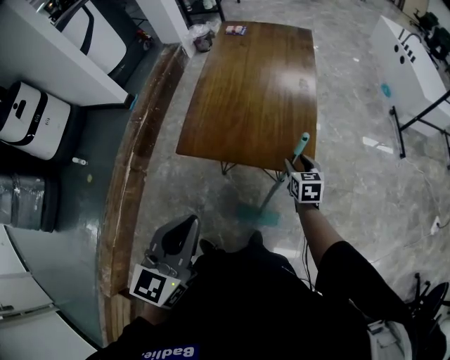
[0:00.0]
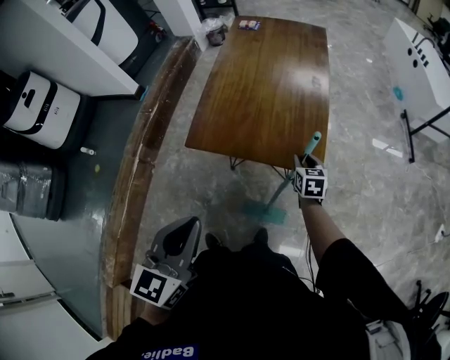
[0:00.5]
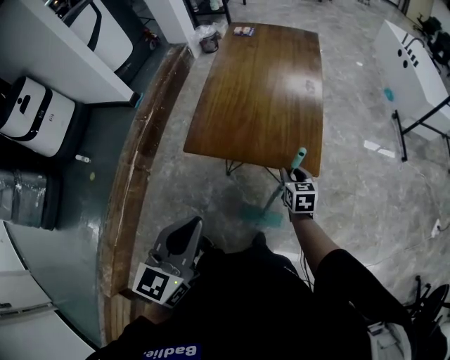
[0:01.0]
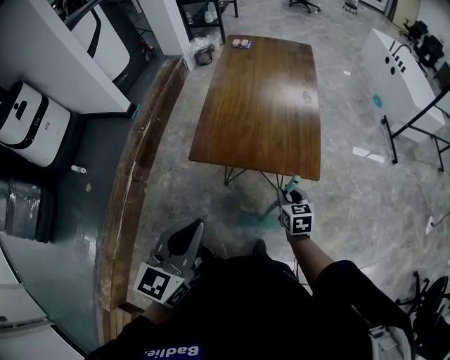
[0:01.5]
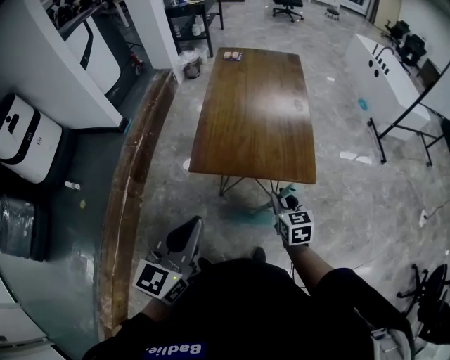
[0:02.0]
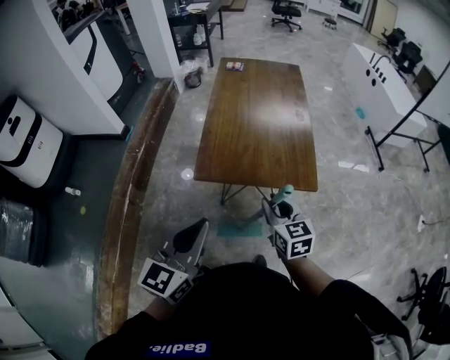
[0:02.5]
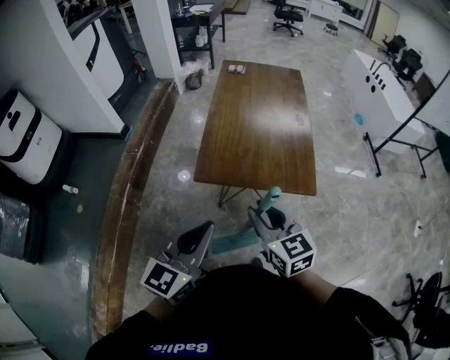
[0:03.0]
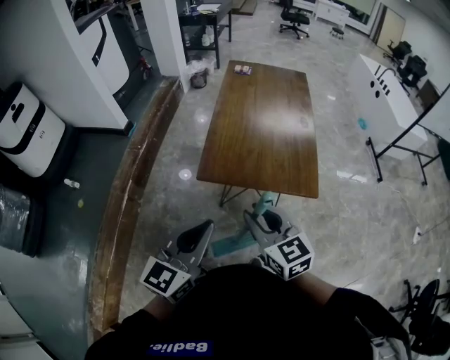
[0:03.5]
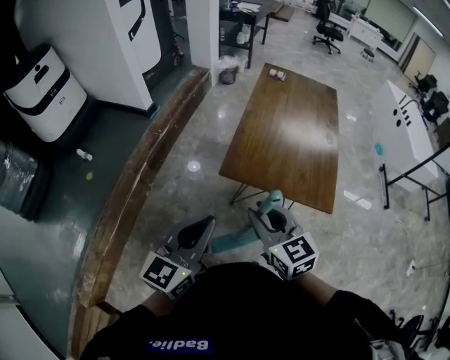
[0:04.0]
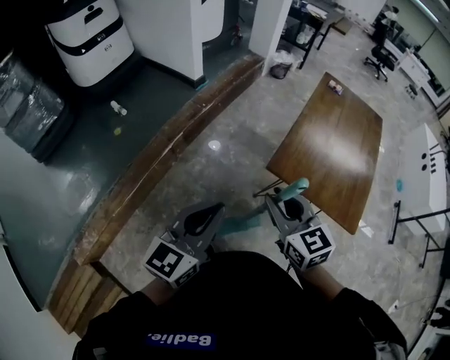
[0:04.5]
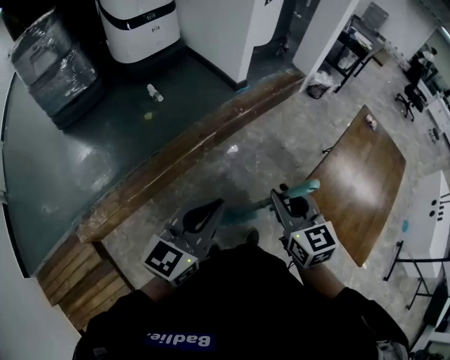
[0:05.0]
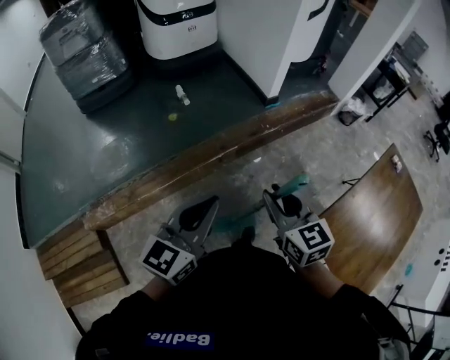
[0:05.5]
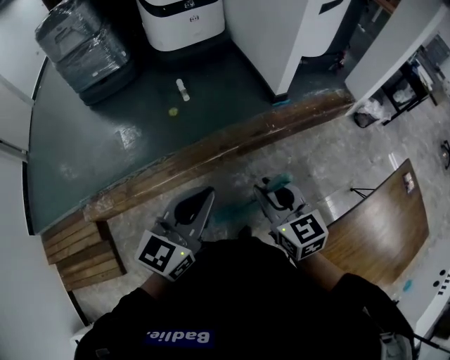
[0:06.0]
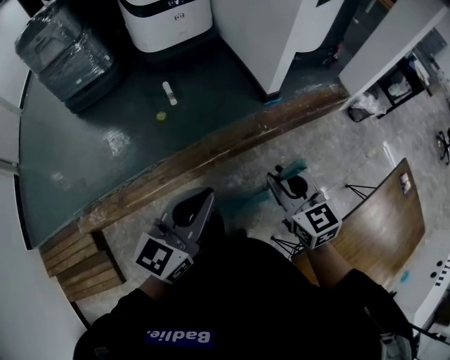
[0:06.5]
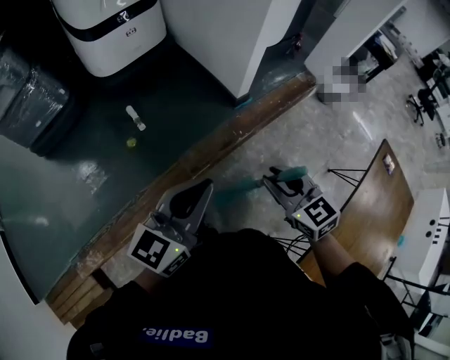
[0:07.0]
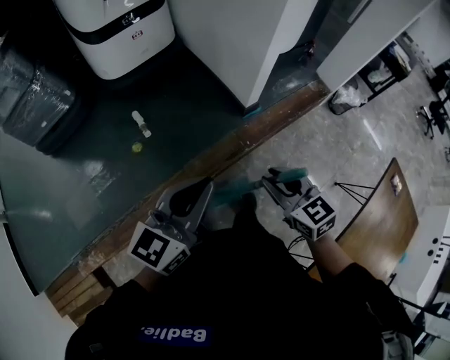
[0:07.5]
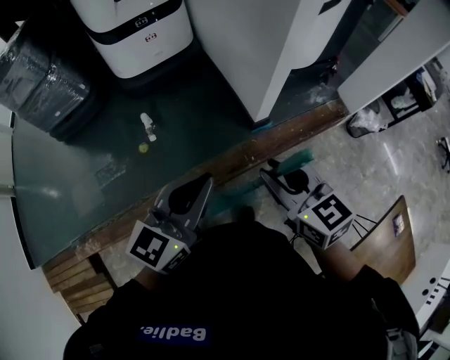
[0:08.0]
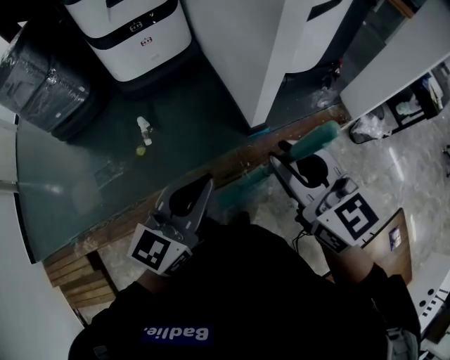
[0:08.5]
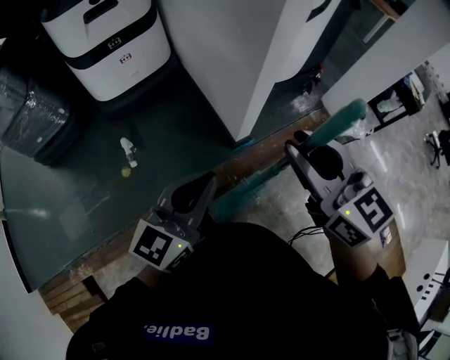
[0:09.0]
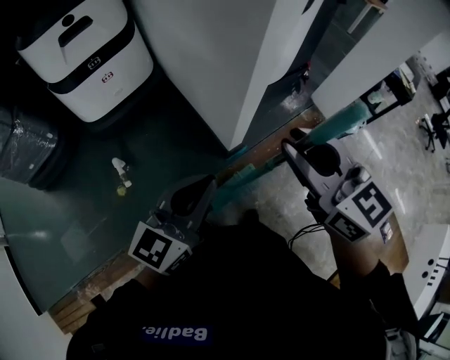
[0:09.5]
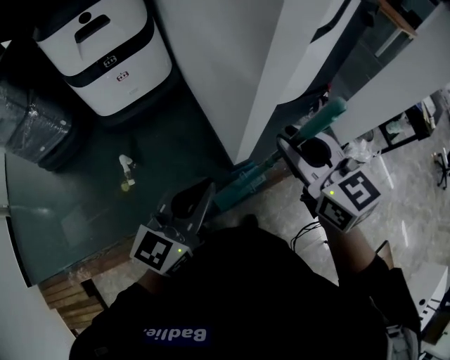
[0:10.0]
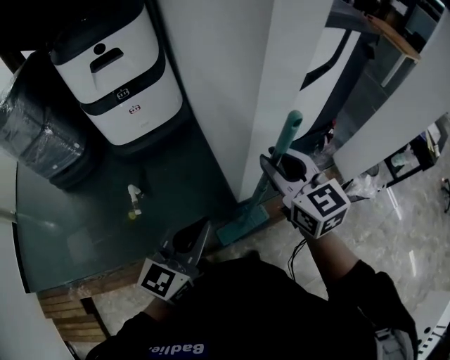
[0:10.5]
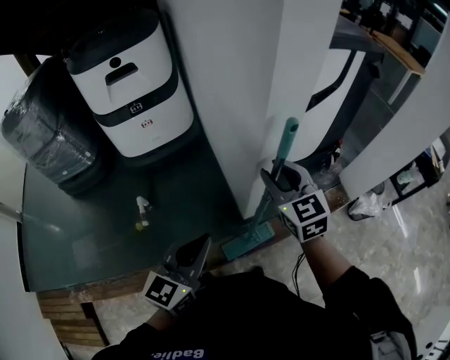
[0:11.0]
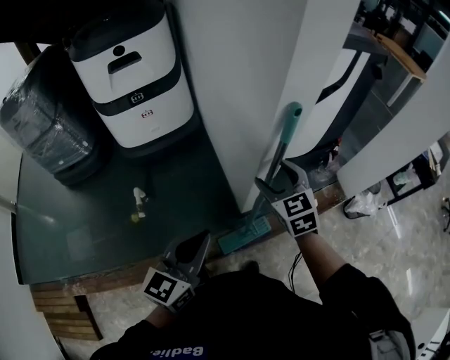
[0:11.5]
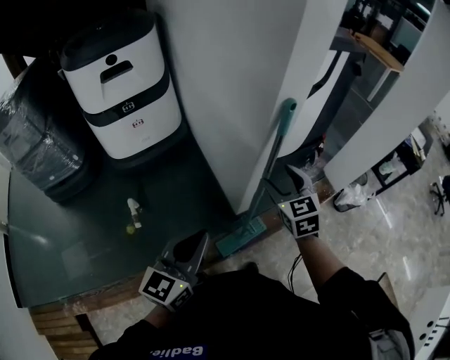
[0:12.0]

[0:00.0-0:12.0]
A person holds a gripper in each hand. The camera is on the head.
0:00.0 to 0:02.0: The left gripper shifts about 10 cm to the left; the right gripper moves to the left, backward and upward, approximately 20 cm.
0:02.0 to 0:04.0: The right gripper shifts about 25 cm to the left and upward, and turns by some 30 degrees, while the left gripper goes roughly 5 cm to the left.
0:04.0 to 0:06.0: The right gripper shifts by approximately 50 cm, and rotates approximately 50 degrees. The left gripper changes place by about 40 cm, and turns by approximately 50 degrees.
0:06.0 to 0:08.0: Both grippers travel together forward, about 35 cm.
0:08.0 to 0:10.0: Both grippers move forward and to the right, roughly 30 cm.
0:10.0 to 0:12.0: The right gripper moves downward and forward, some 10 cm, swivels approximately 20 degrees, and opens its fingers, while the left gripper goes roughly 5 cm to the left.

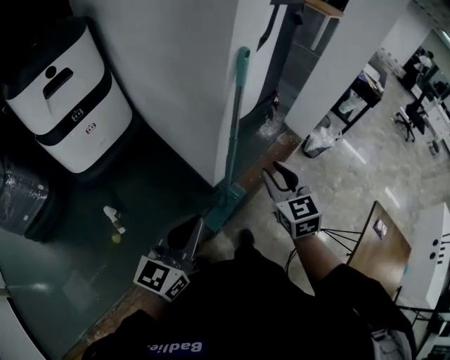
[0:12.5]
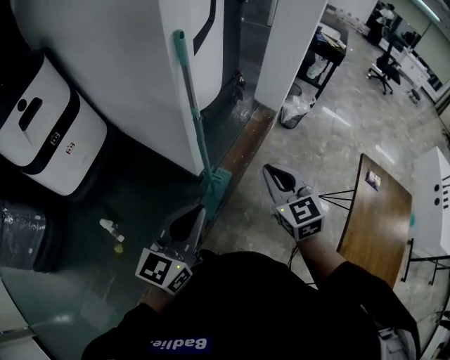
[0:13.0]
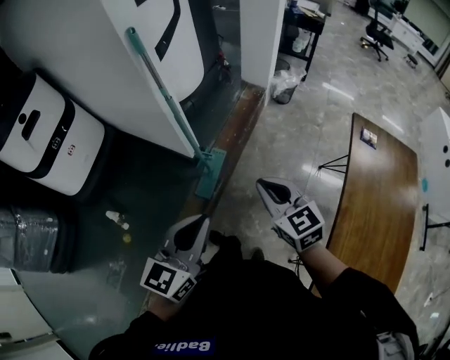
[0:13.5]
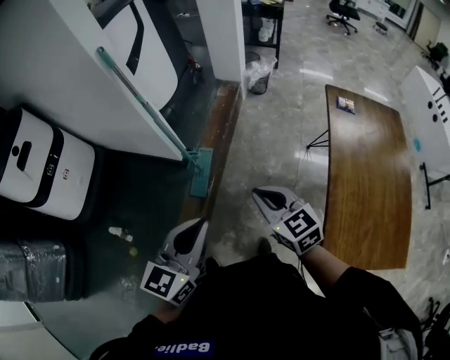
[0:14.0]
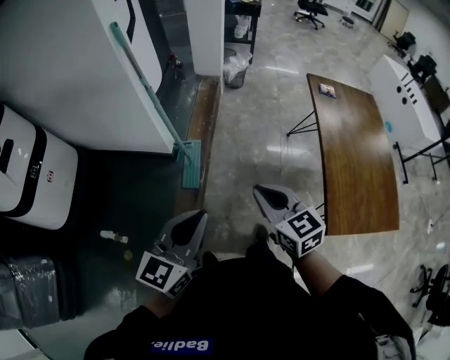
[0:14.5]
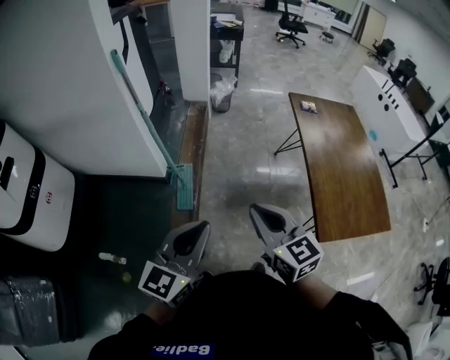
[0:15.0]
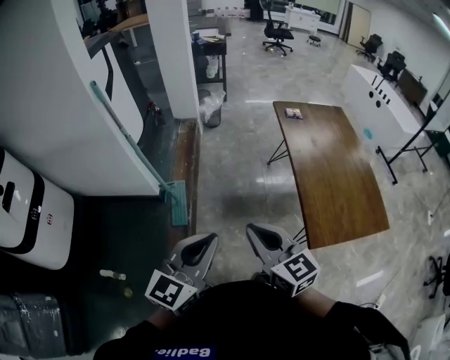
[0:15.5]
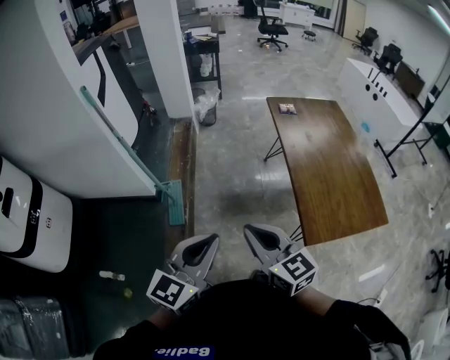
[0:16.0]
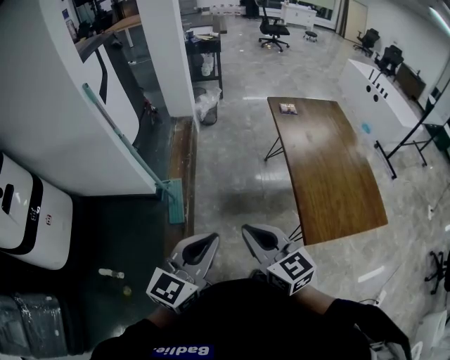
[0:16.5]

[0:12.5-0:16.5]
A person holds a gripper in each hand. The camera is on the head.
0:12.5 to 0:14.5: The left gripper shifts by roughly 25 cm, and rotates about 40 degrees. The right gripper moves roughly 40 cm, changes its angle by about 30 degrees, and closes its fingers.
0:14.5 to 0:16.5: The left gripper shifts about 15 cm to the right. The right gripper heads to the right, backward and upward, covering about 15 cm.

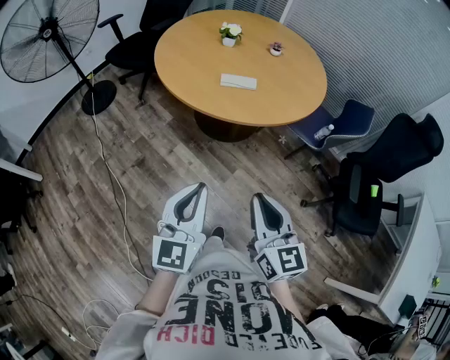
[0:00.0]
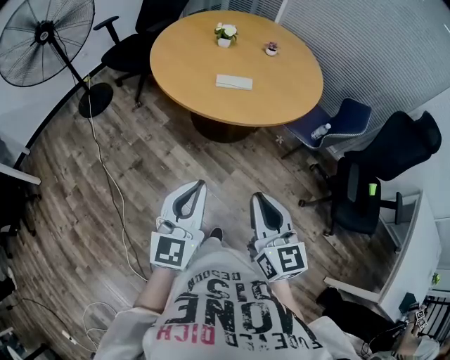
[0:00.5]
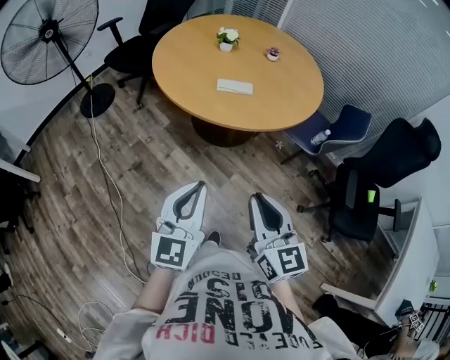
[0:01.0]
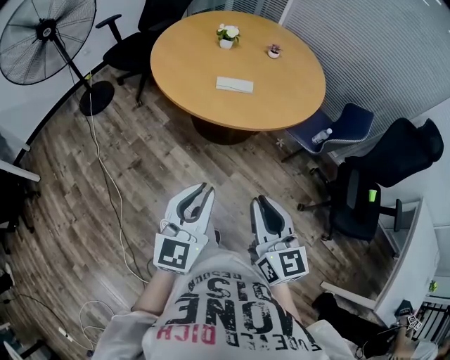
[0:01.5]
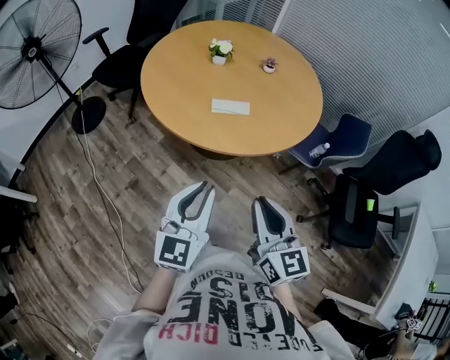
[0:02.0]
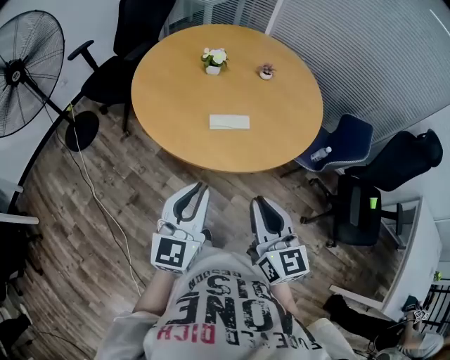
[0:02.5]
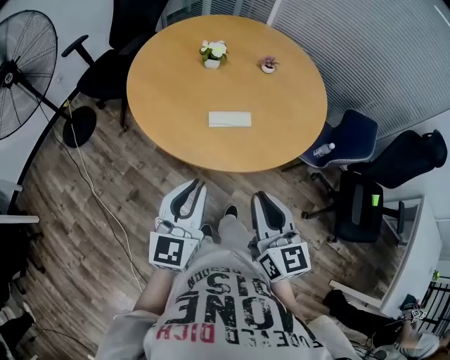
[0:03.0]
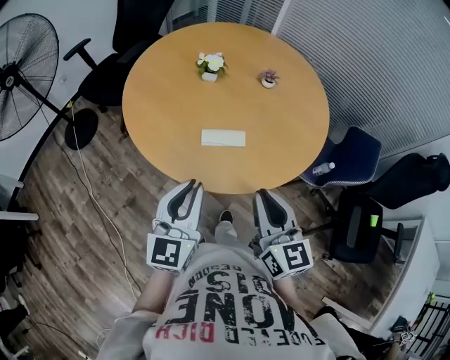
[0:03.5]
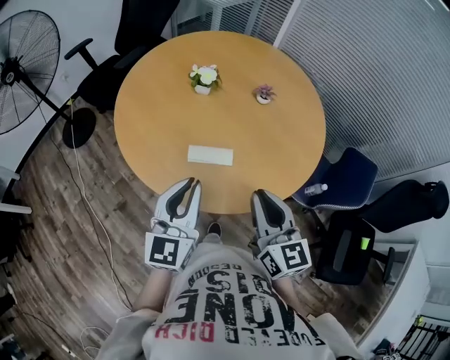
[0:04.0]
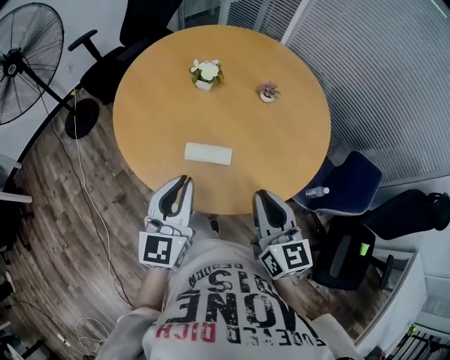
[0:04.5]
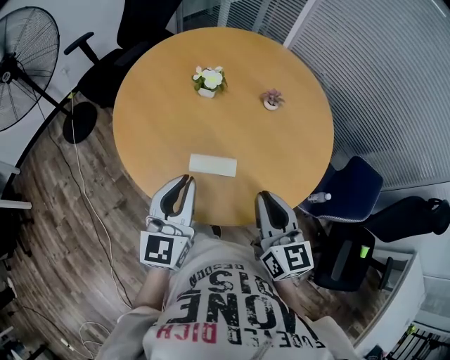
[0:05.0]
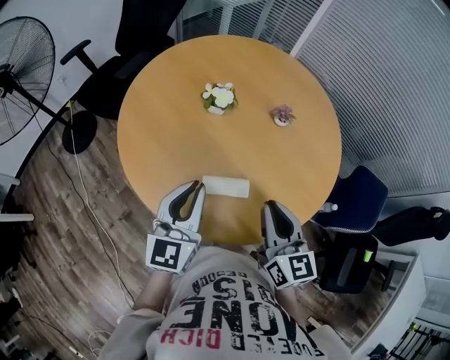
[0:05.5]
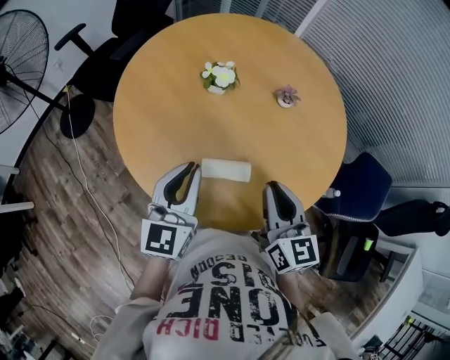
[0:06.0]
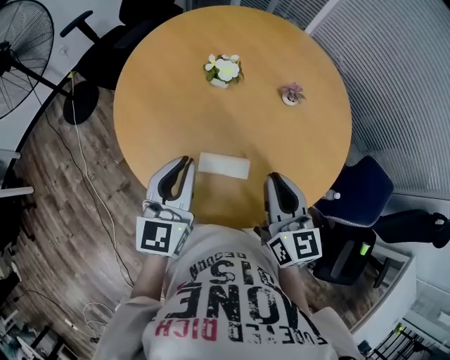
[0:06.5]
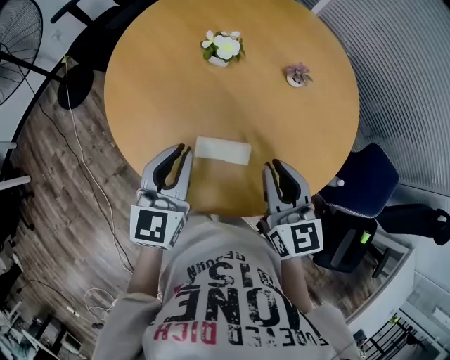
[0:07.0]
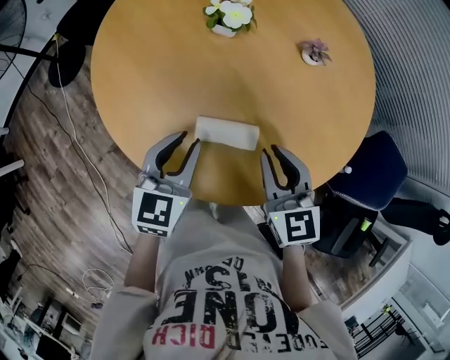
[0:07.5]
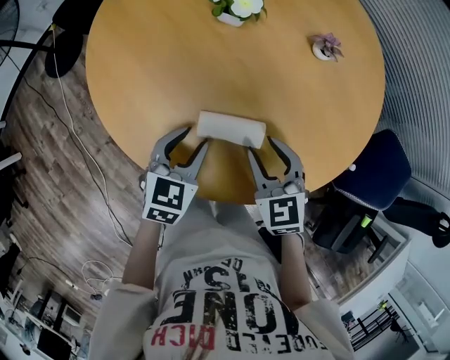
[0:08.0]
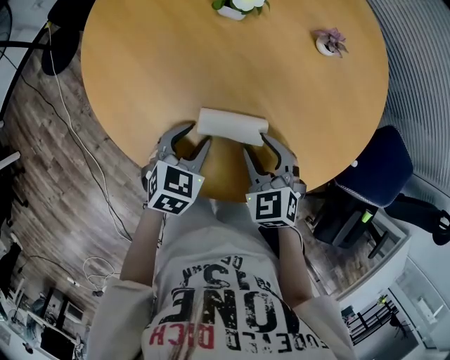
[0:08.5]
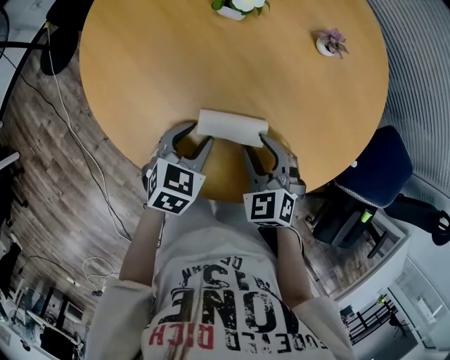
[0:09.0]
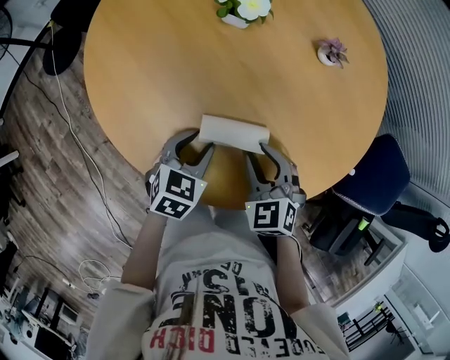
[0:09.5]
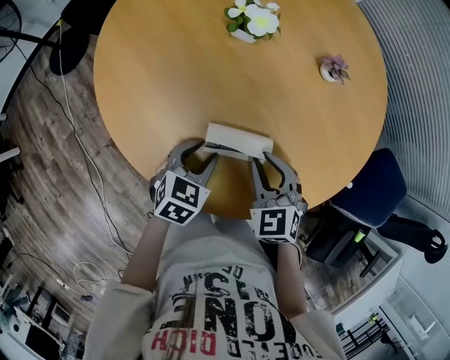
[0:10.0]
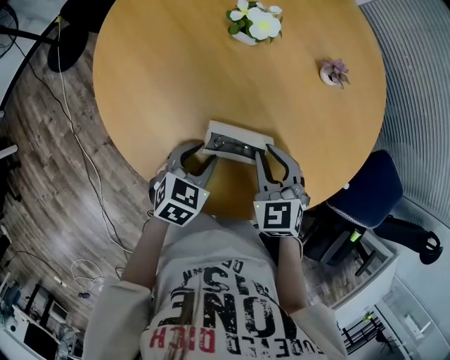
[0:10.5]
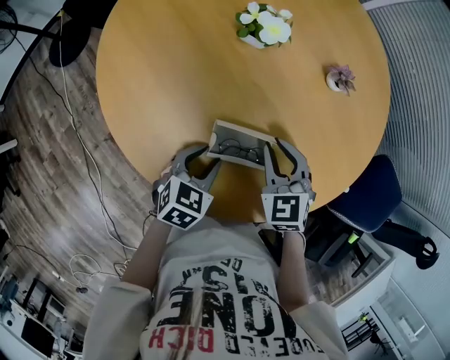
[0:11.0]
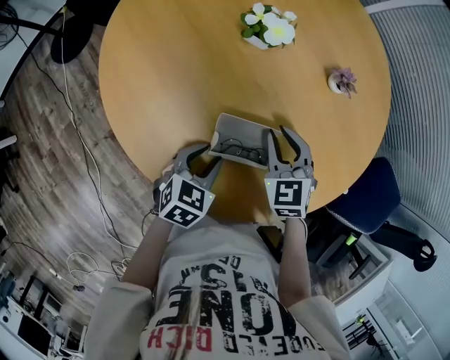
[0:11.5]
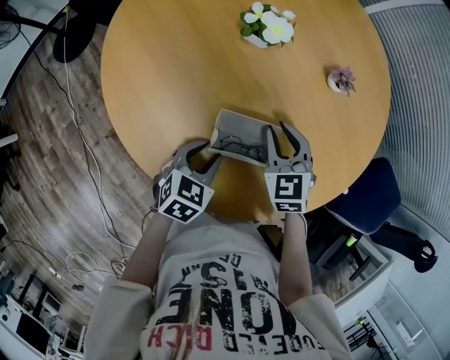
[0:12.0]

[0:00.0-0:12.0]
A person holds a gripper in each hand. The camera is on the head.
0:00.0 to 0:02.0: The grippers both shift forward by some 15 cm.
0:02.0 to 0:04.0: Both grippers move forward, about 25 cm.
0:04.0 to 0:06.0: Both grippers travel together forward, about 15 cm.
0:06.0 to 0:08.0: Both grippers travel together downward, about 20 cm. The right gripper turns by some 40 degrees, and opens up. The left gripper tilts its fingers approximately 30 degrees downward, and opens its fingers.
0:08.0 to 0:10.0: The left gripper changes place by some 5 cm.
0:10.0 to 0:12.0: The right gripper moves forward, roughly 10 cm.
